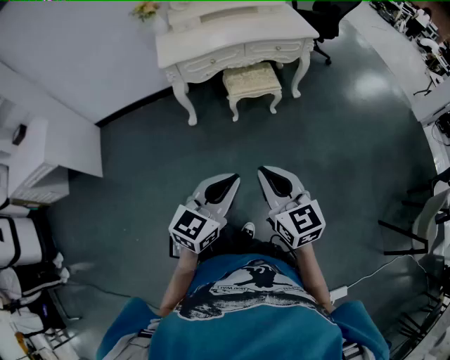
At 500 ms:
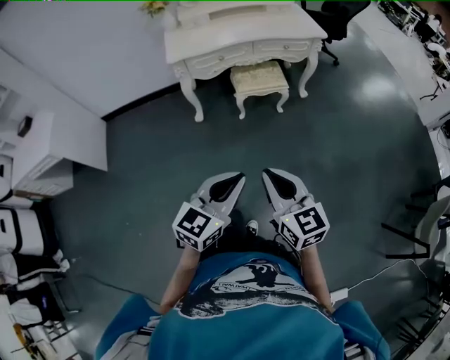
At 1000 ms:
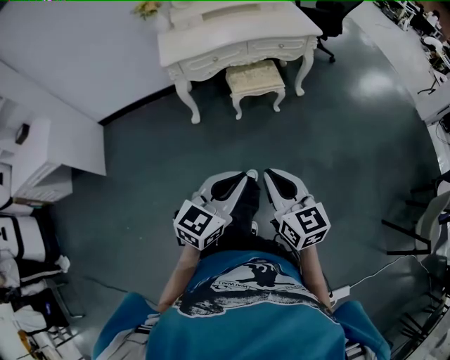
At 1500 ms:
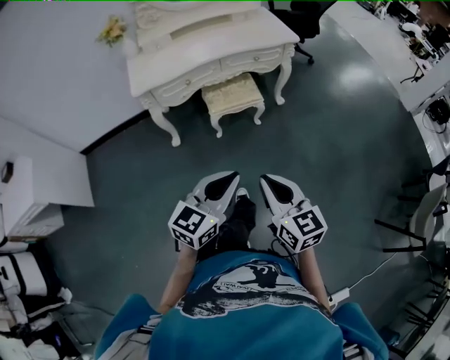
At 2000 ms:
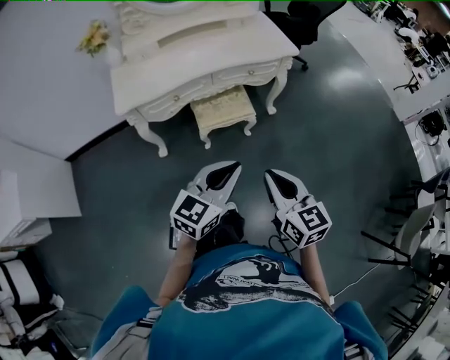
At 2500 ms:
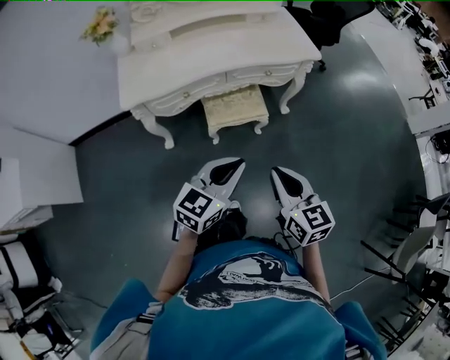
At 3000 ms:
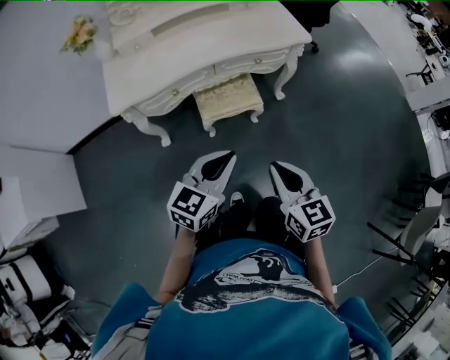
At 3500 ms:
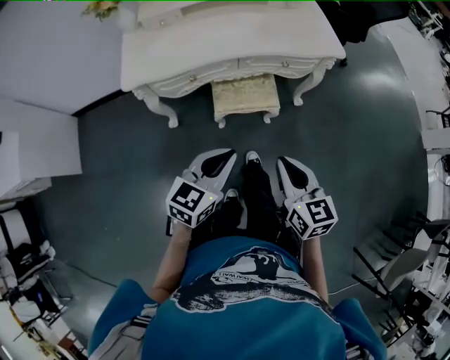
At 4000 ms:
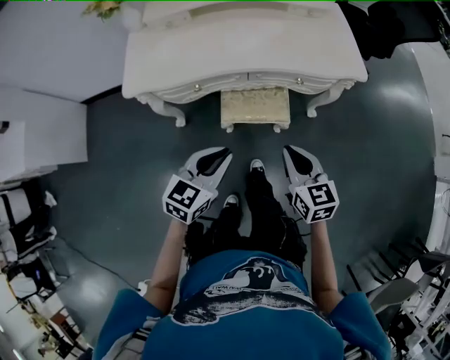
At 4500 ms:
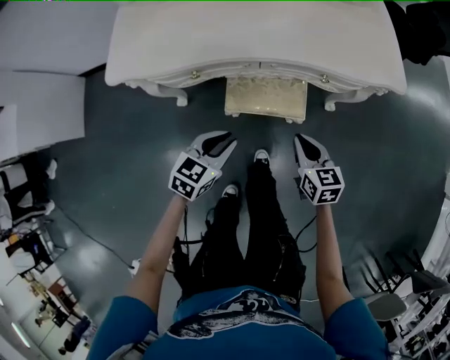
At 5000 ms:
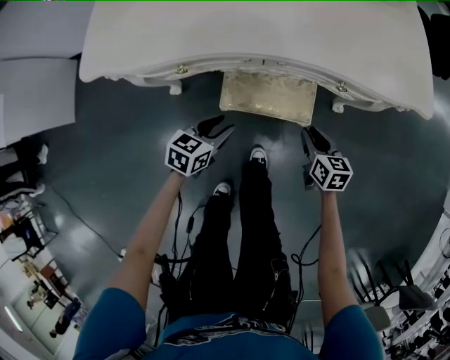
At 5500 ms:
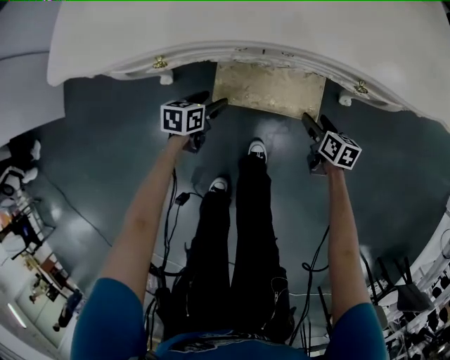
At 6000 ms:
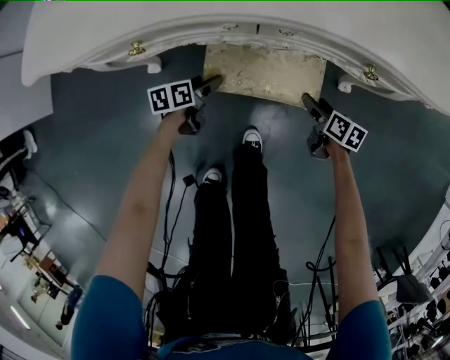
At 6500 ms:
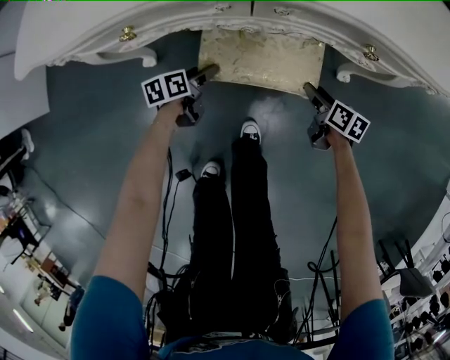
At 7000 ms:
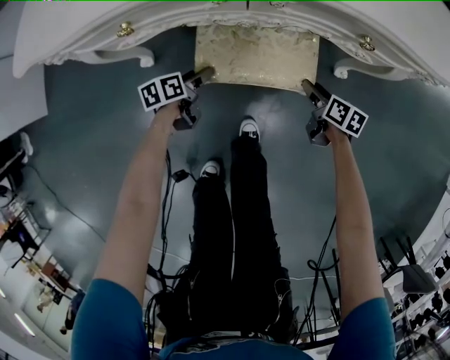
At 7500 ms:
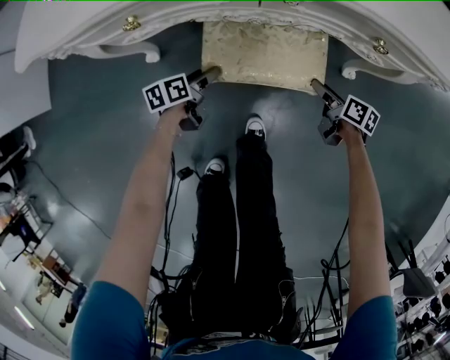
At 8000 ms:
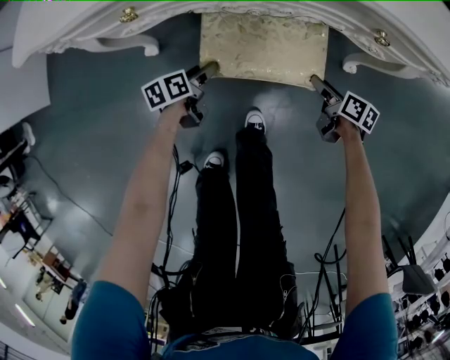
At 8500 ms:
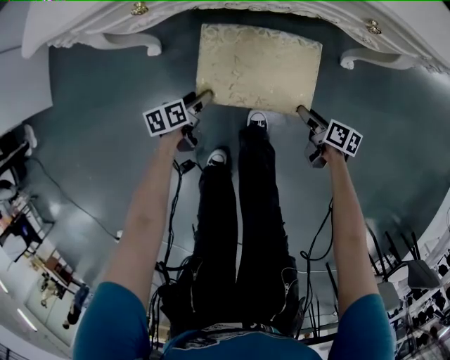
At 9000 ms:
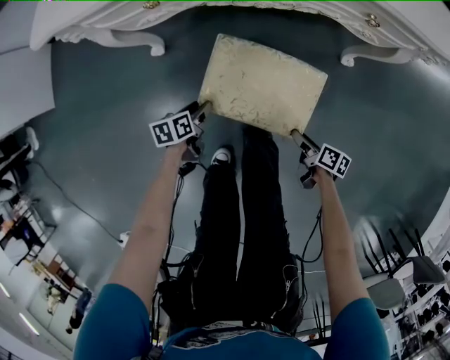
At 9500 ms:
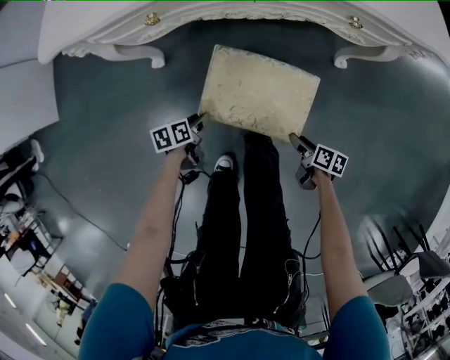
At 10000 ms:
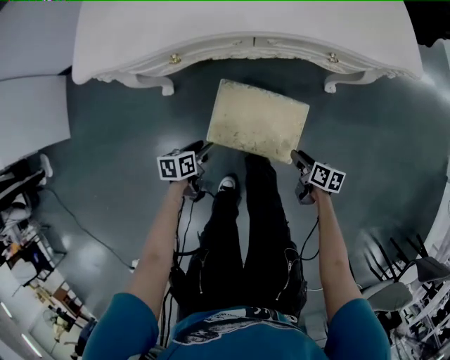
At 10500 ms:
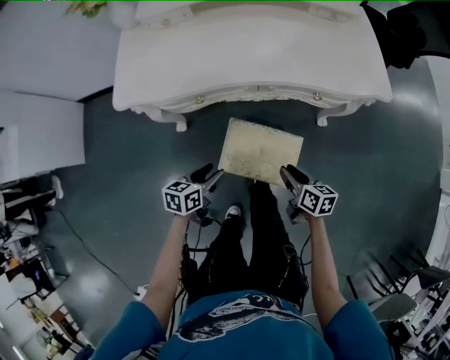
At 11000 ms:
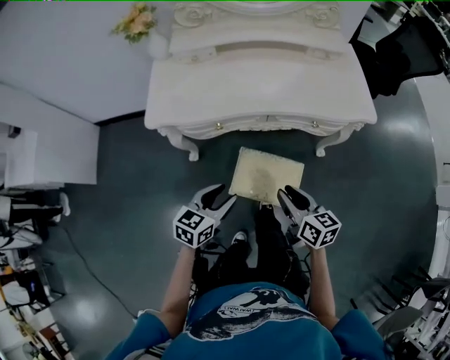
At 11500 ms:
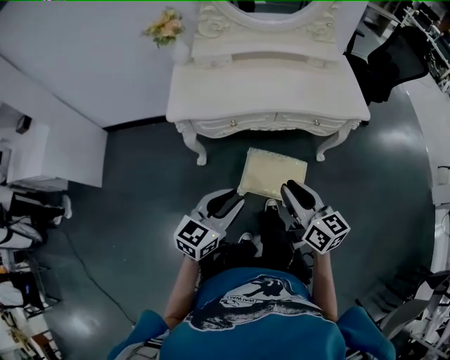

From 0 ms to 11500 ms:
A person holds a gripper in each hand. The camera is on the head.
From 0 ms to 2000 ms: Both grippers move forward, some 30 cm.
From 2000 ms to 4000 ms: The right gripper heads forward, covering approximately 25 cm. Meanwhile the left gripper shifts roughly 20 cm forward and downward, and swivels some 20 degrees.
From 4000 ms to 6000 ms: Both grippers travel together downward and forward, some 50 cm. The left gripper rotates around the line of its fingers by approximately 50 degrees, counterclockwise from behind, and opens its fingers, while the right gripper rotates about 40 degrees, and opens.
From 6000 ms to 7500 ms: The grippers move only a little.
From 7500 ms to 9500 ms: Both grippers travel together backward, about 20 cm. The left gripper closes its fingers.
From 9500 ms to 11500 ms: Both grippers move upward, some 50 cm. The right gripper tilts its fingers approximately 40 degrees upward, and closes; the left gripper points its fingers some 40 degrees further upward.

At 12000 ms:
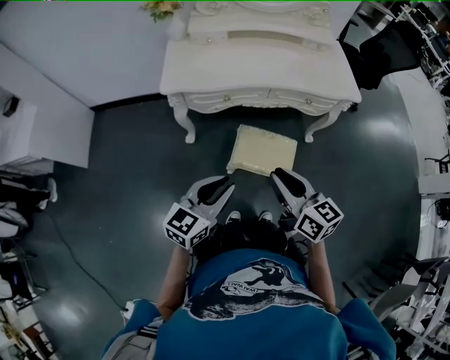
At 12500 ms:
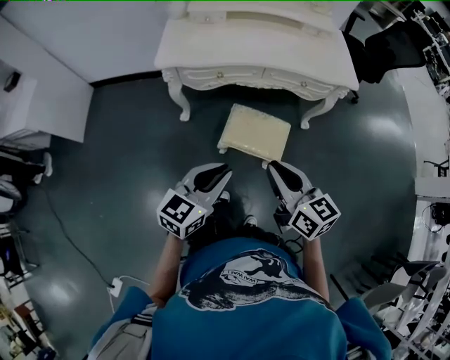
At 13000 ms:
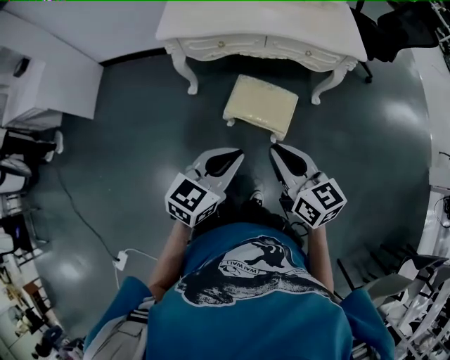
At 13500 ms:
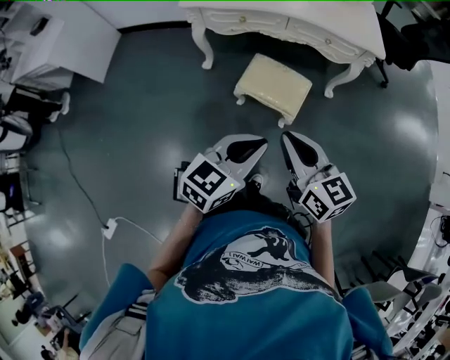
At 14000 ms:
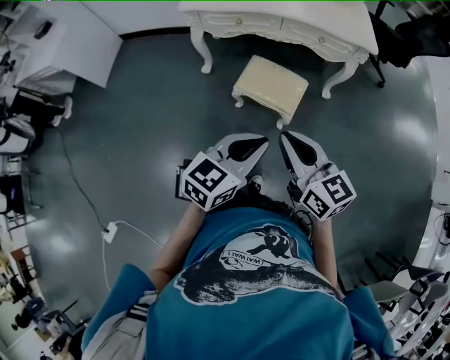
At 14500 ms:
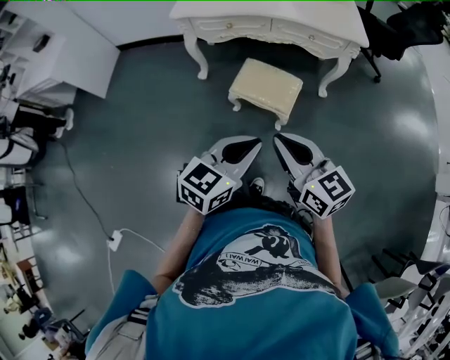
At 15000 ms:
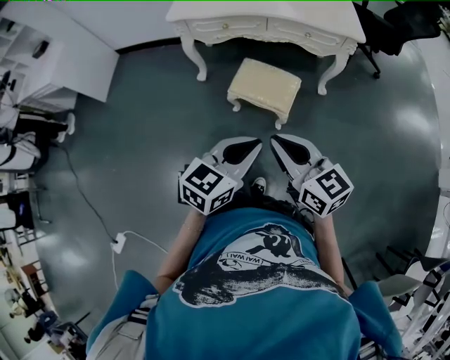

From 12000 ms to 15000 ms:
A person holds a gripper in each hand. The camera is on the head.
From 12000 ms to 13500 ms: The left gripper shifts about 25 cm to the right and backward; the right gripper is displaced backward and to the right by about 20 cm.
From 13500 ms to 15000 ms: The left gripper ends up roughly 5 cm from where it was. The right gripper travels backward by approximately 5 cm.

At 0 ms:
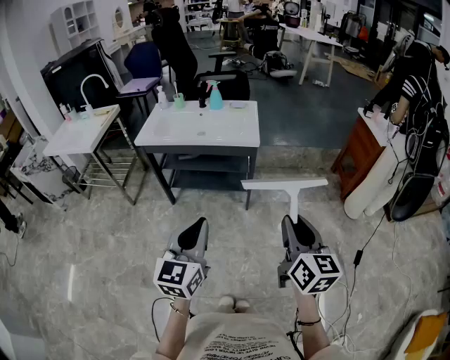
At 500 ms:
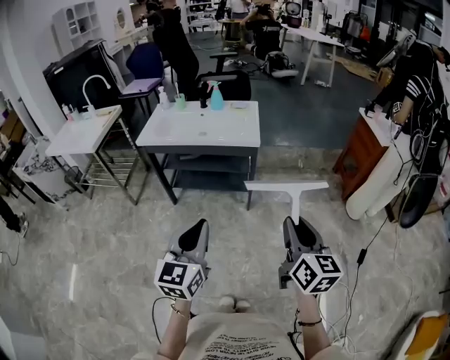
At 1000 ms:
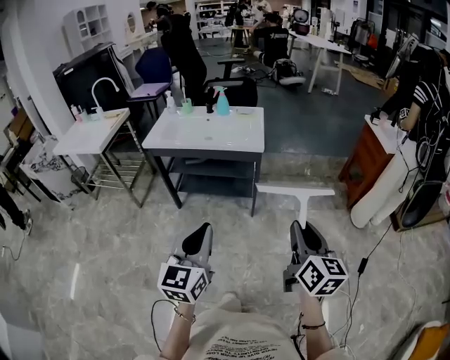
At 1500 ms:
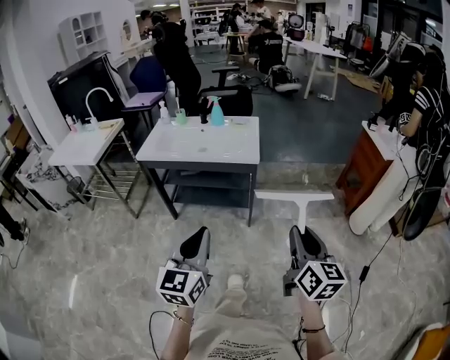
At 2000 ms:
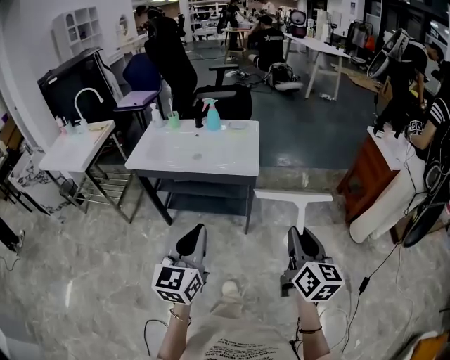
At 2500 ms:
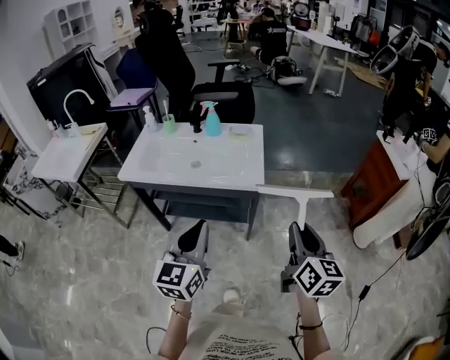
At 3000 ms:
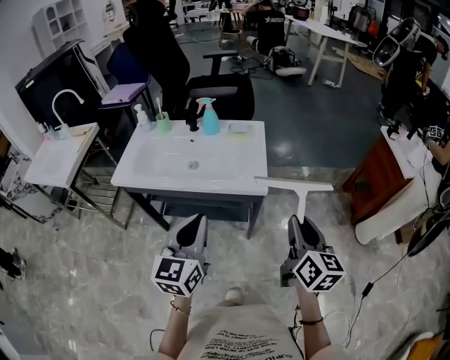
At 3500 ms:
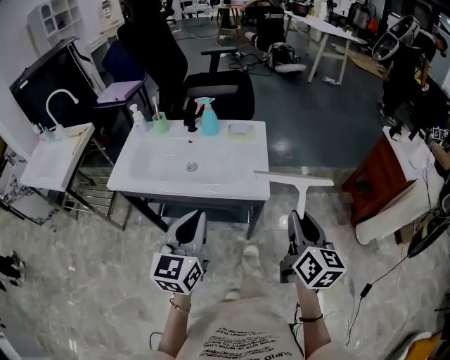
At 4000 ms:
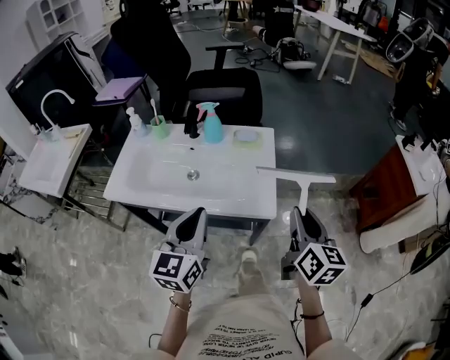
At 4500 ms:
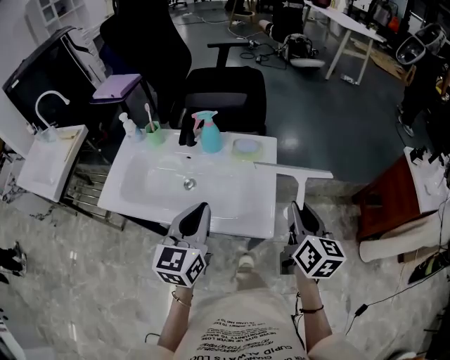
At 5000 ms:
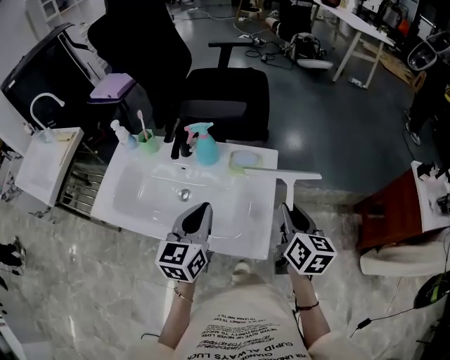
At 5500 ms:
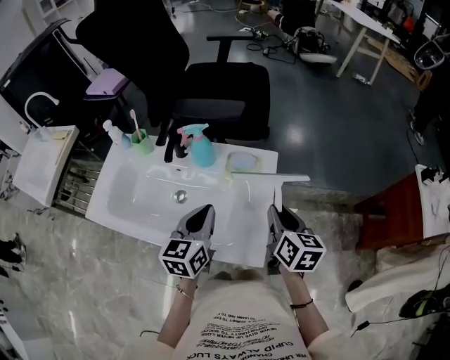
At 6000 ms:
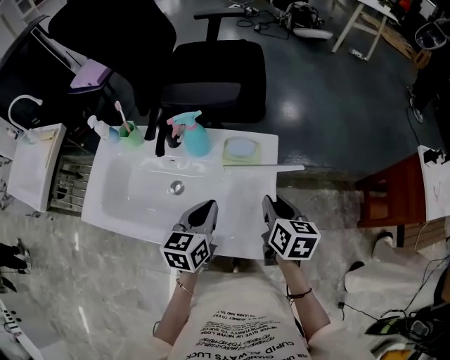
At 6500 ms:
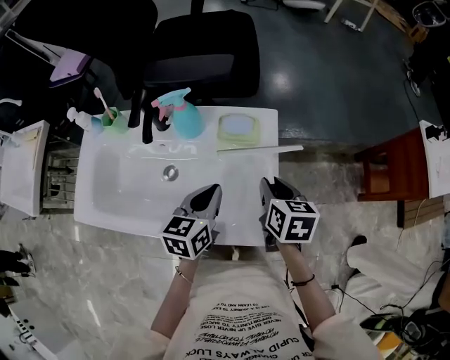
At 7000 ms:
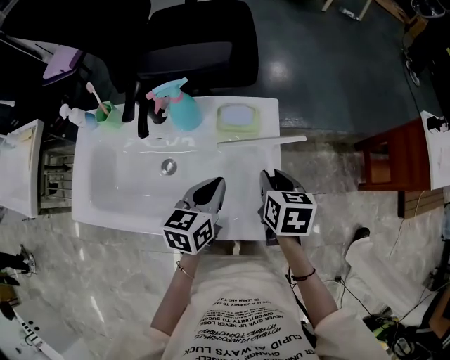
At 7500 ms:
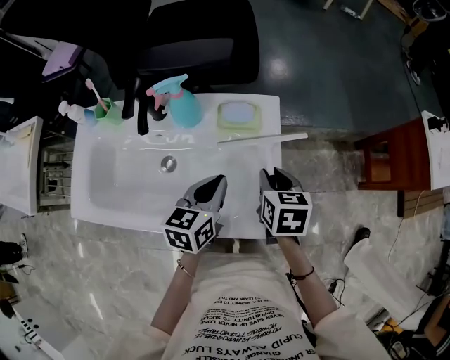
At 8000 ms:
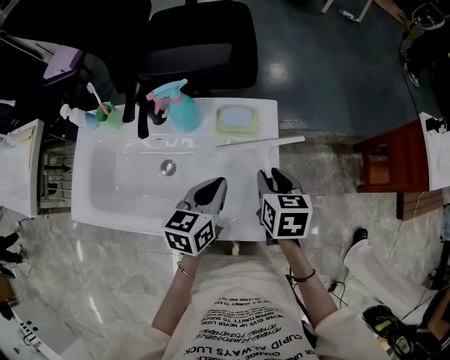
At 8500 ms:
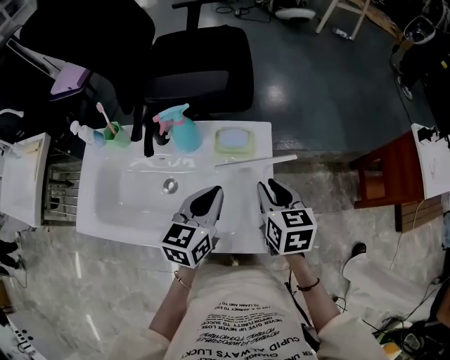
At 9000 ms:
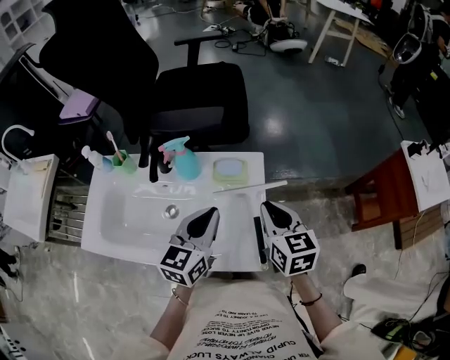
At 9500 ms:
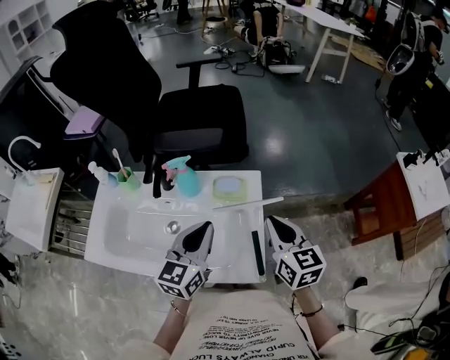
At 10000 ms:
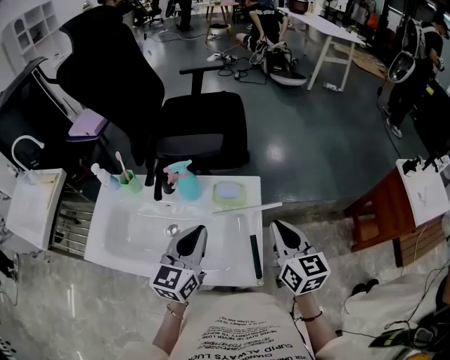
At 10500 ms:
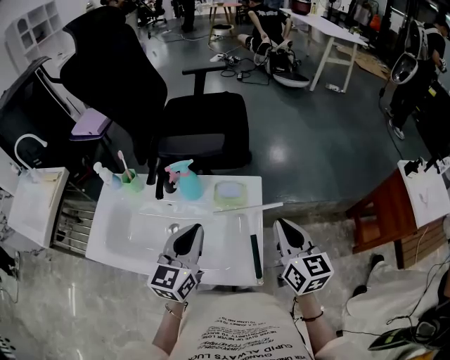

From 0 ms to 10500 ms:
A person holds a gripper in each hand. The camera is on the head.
From 0 ms to 2000 ms: Both grippers travel together forward, roughly 15 cm.
From 2000 ms to 4000 ms: Both grippers move forward, about 30 cm.
From 4000 ms to 6500 ms: The two grippers go about 25 cm forward and downward. The right gripper tips its fingers downward by approximately 30 degrees. The left gripper rotates some 30 degrees.
From 6500 ms to 8500 ms: The left gripper heads upward, covering approximately 5 cm.
From 8500 ms to 10500 ms: The right gripper heads upward and to the right, covering some 10 cm, swivels some 20 degrees, and closes its fingers, while the left gripper goes approximately 10 cm upward.

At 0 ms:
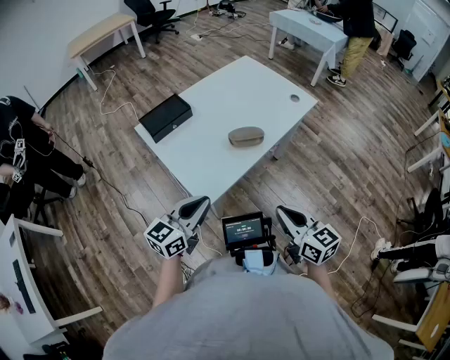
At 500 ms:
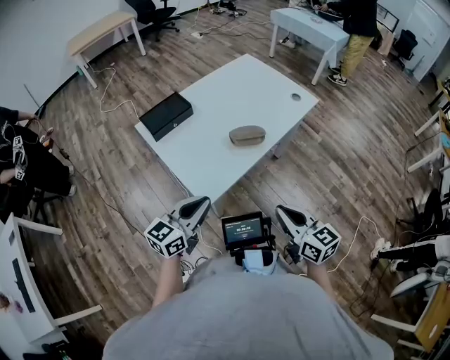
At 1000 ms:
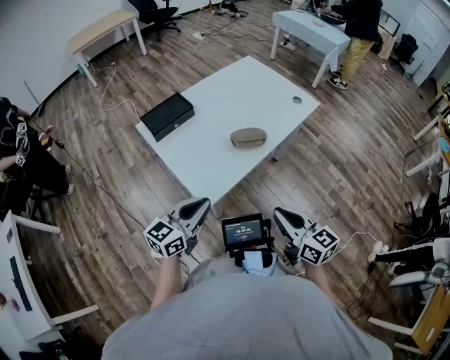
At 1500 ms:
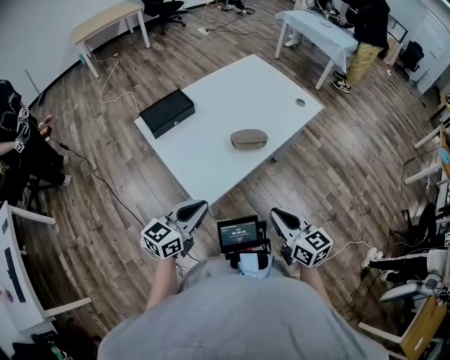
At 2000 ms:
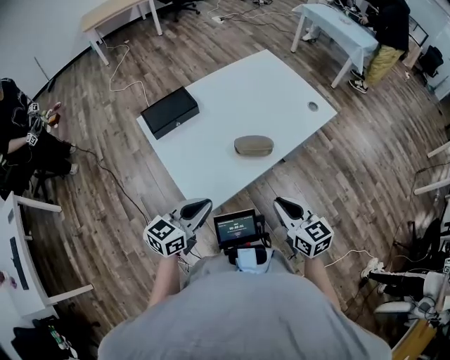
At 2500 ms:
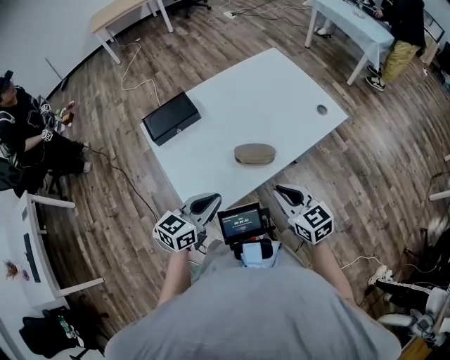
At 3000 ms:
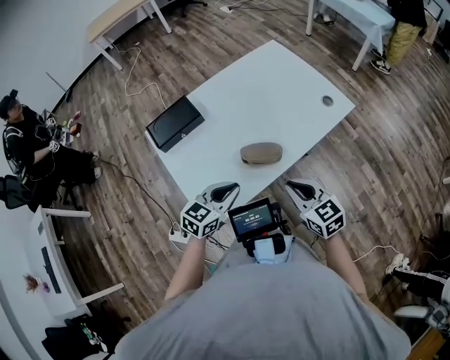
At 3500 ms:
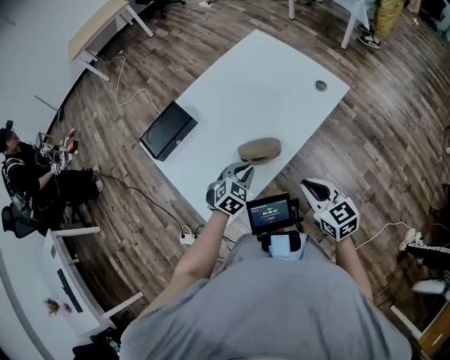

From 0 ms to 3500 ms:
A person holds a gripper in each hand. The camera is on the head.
From 0 ms to 2000 ms: The left gripper travels forward by some 5 cm. Meanwhile the right gripper moves forward, about 10 cm.
From 2000 ms to 3500 ms: The right gripper heads forward and to the right, covering roughly 10 cm; the left gripper moves forward, downward and to the right, about 25 cm, and angles its fingers downward, by roughly 30 degrees.
